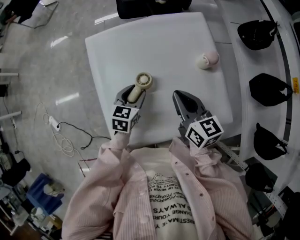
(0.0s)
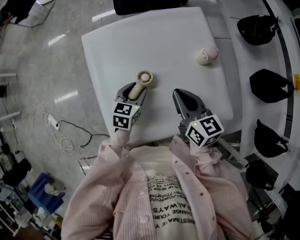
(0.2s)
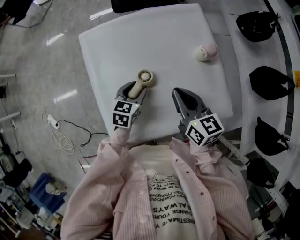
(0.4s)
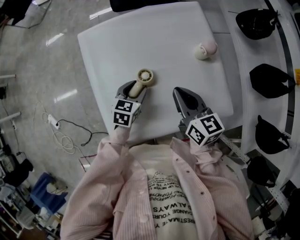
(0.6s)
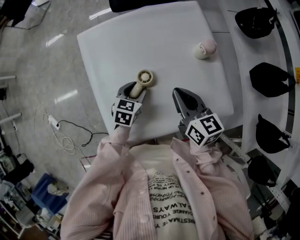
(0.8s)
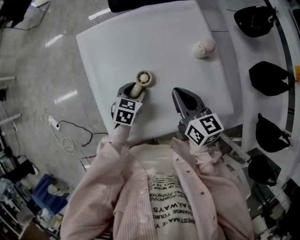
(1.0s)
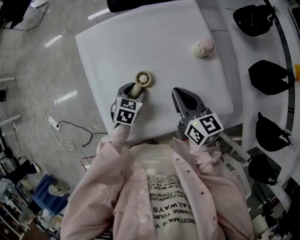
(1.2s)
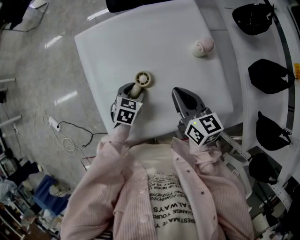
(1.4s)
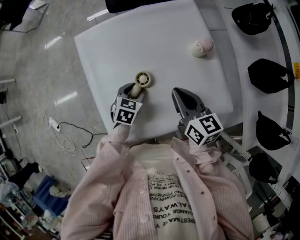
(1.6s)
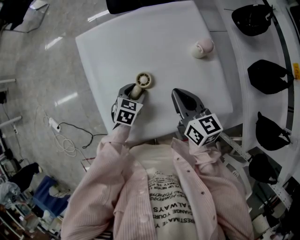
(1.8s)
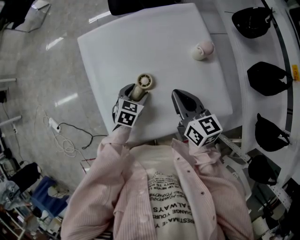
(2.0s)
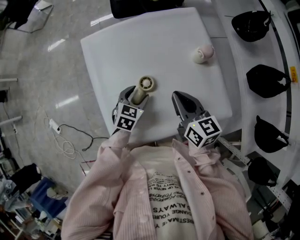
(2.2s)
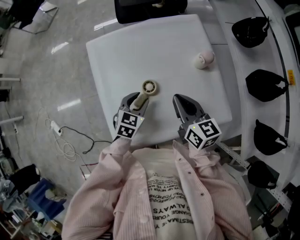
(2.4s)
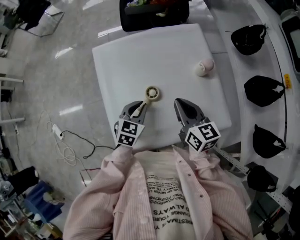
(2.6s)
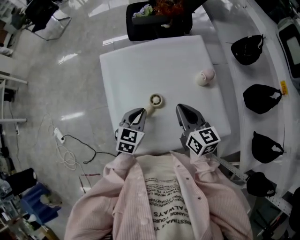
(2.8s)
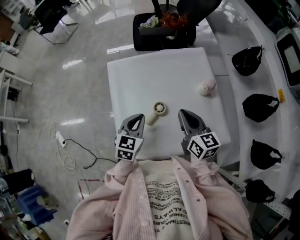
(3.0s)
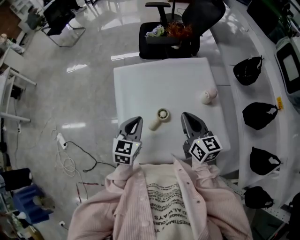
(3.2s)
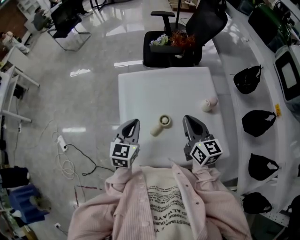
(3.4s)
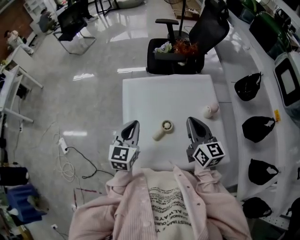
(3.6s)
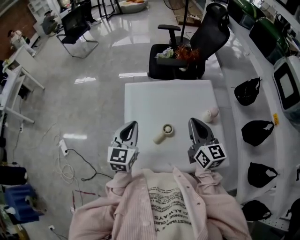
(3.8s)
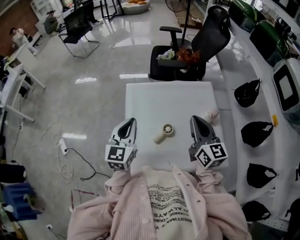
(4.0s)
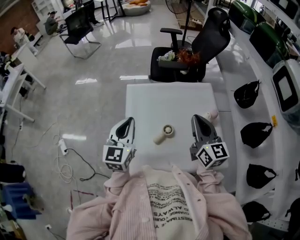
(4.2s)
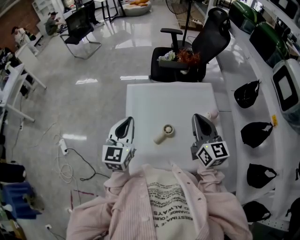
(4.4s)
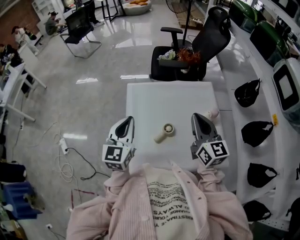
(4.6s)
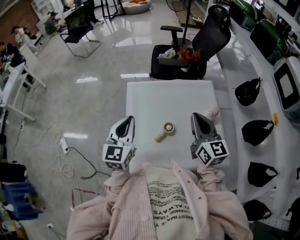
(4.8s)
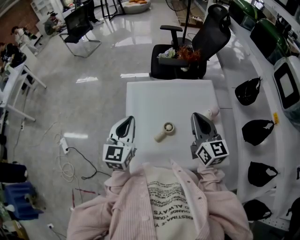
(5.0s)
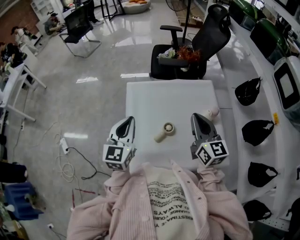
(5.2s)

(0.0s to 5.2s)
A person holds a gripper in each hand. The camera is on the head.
0.0s - 1.8s: The left gripper goes about 5 cm downward.
1.8s - 3.4s: The right gripper is displaced upward by about 10 cm, while the left gripper shifts some 25 cm upward and to the left, points its fingers roughly 30 degrees further upward, and closes.
3.4s - 5.2s: Both grippers travel together upward, some 5 cm.

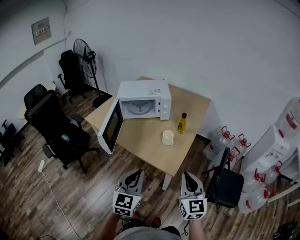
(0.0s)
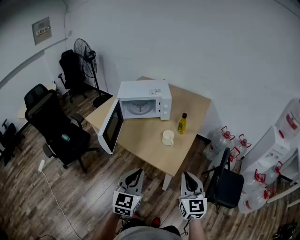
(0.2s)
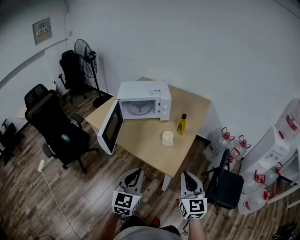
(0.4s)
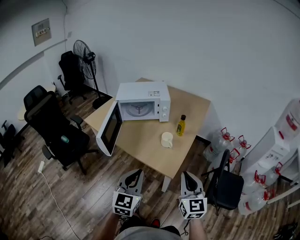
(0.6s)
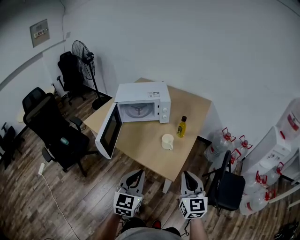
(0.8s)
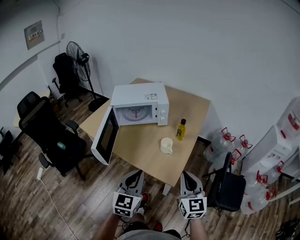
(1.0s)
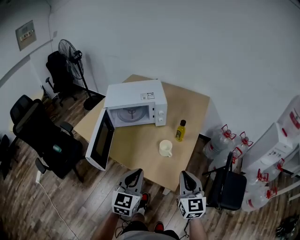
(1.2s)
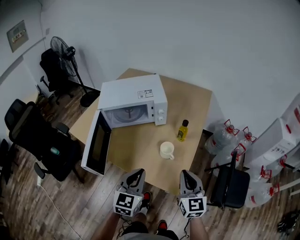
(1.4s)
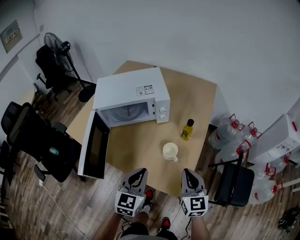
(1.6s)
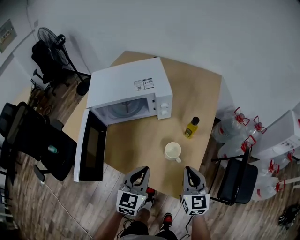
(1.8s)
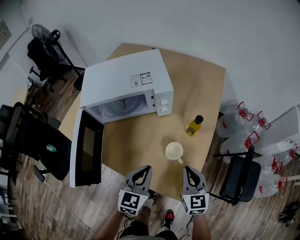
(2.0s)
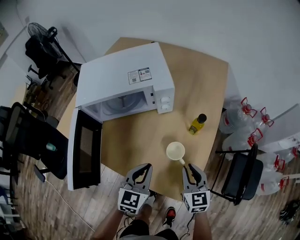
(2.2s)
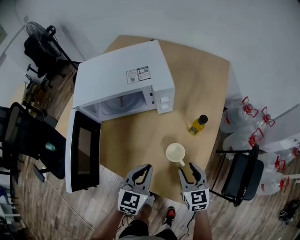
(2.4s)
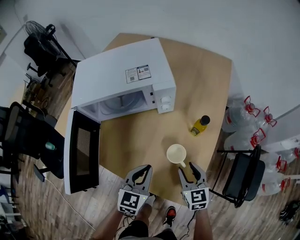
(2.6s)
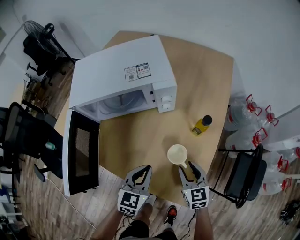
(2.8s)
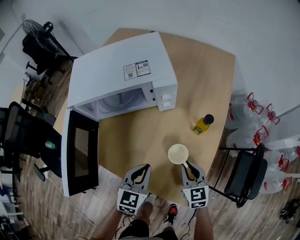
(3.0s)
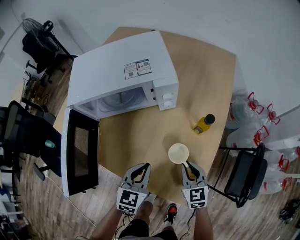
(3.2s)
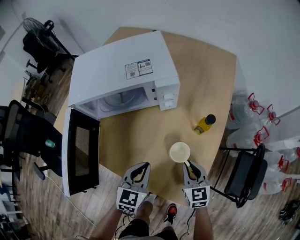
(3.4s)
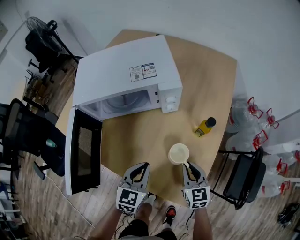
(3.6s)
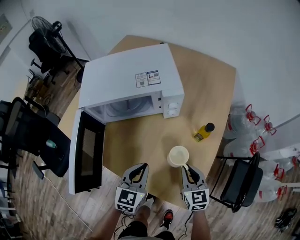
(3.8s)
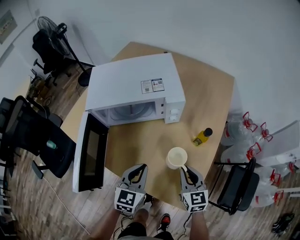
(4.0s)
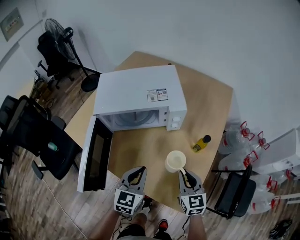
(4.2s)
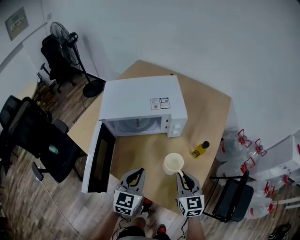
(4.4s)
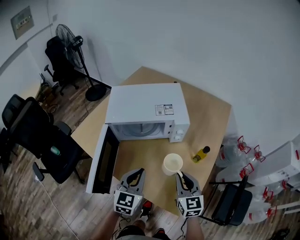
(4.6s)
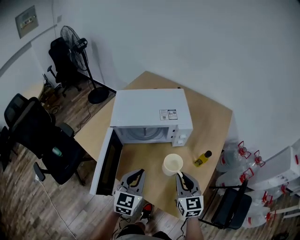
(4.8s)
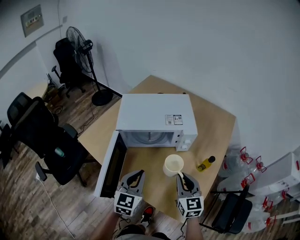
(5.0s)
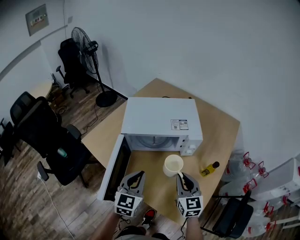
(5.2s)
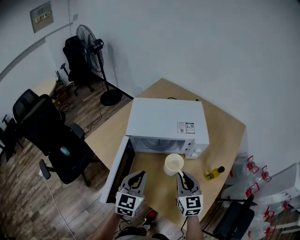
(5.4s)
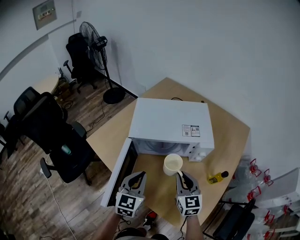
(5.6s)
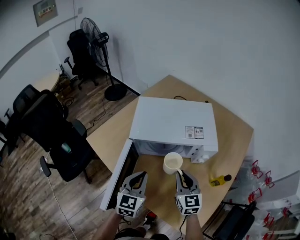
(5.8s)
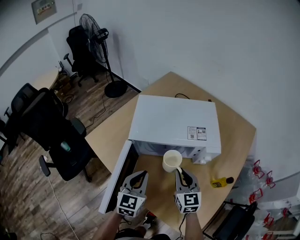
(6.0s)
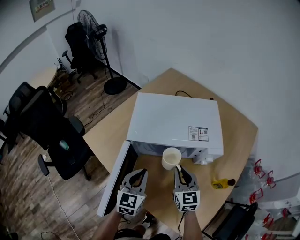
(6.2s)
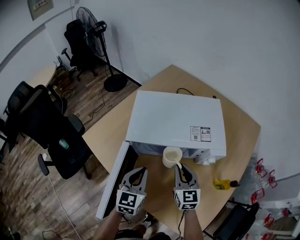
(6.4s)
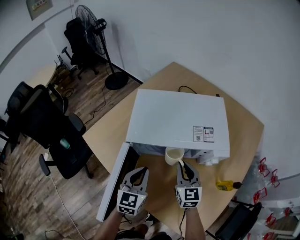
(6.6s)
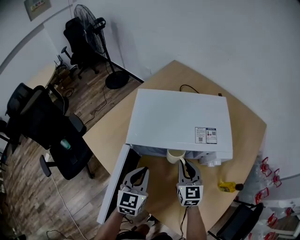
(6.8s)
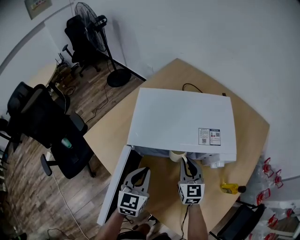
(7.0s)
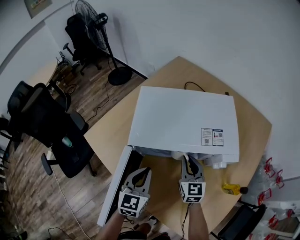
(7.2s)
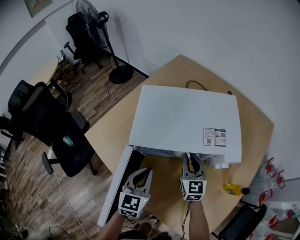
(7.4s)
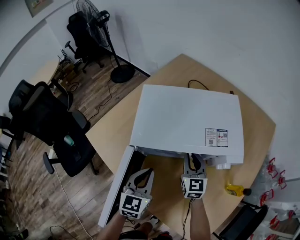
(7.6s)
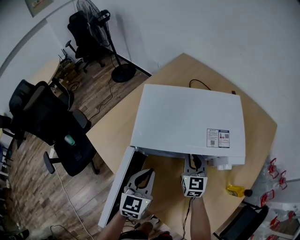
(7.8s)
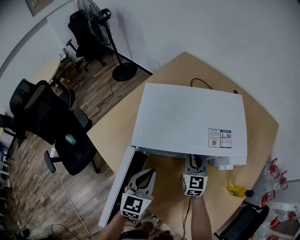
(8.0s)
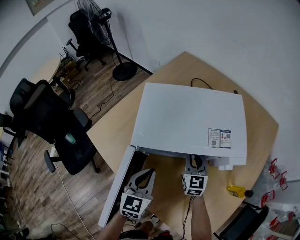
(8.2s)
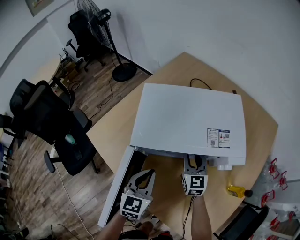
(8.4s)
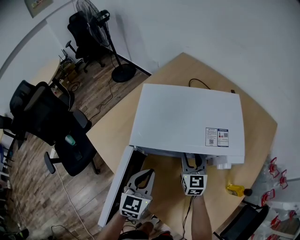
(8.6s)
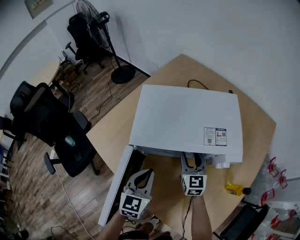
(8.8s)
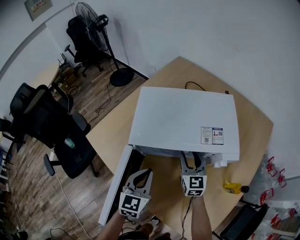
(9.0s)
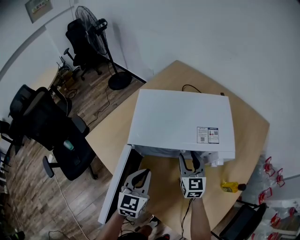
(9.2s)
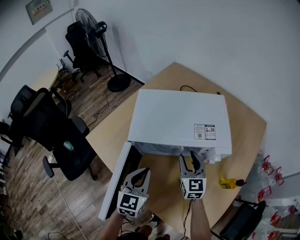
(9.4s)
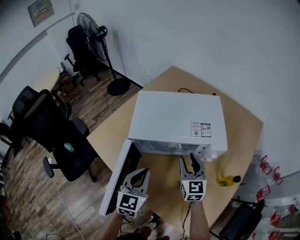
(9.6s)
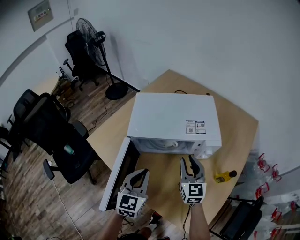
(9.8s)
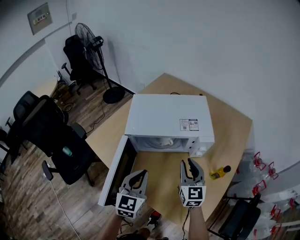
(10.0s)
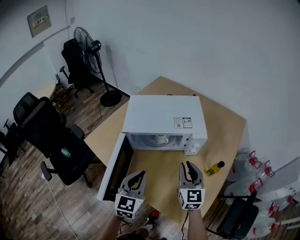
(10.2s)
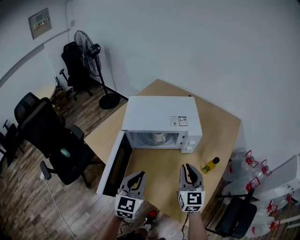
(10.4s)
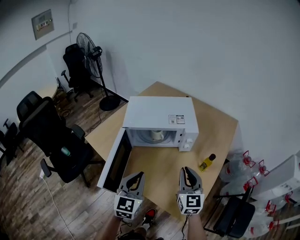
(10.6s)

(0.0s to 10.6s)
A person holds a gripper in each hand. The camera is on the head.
0.0s - 1.6s: The left gripper is displaced forward by about 25 cm. Meanwhile the right gripper heads forward and downward, covering roughly 25 cm.
1.6s - 3.0s: Both grippers move downward and forward, roughly 20 cm. The right gripper opens and closes again.
3.0s - 4.6s: Both grippers travel together upward and to the left, roughly 15 cm.
4.6s - 6.0s: The left gripper shifts about 15 cm to the left and forward, while the right gripper travels forward and to the left by some 20 cm.
6.0s - 7.6s: The left gripper moves forward and downward, approximately 10 cm. Meanwhile the right gripper heads forward and downward, covering some 15 cm.
7.6s - 9.0s: The right gripper opens.
9.0s - 10.6s: The grippers both shift backward and upward by roughly 25 cm. The right gripper closes its fingers.

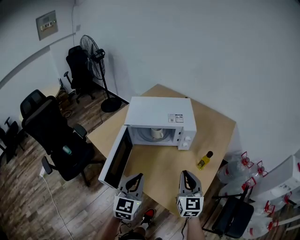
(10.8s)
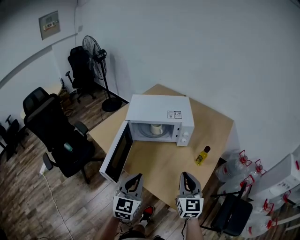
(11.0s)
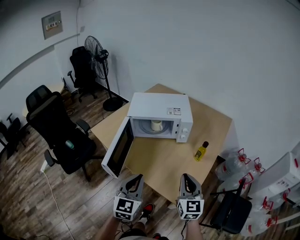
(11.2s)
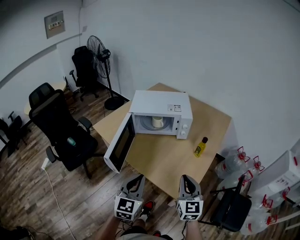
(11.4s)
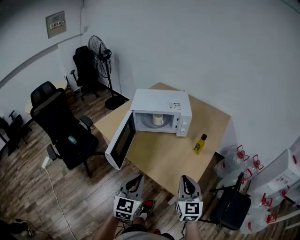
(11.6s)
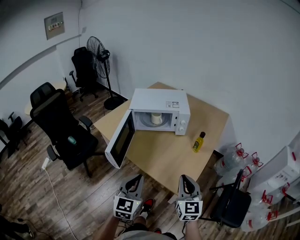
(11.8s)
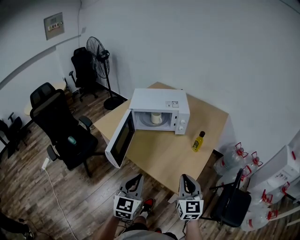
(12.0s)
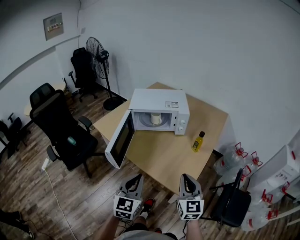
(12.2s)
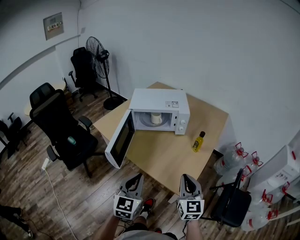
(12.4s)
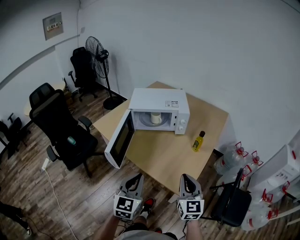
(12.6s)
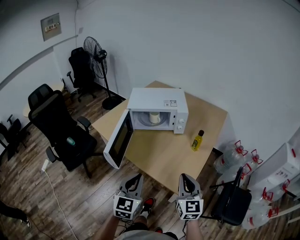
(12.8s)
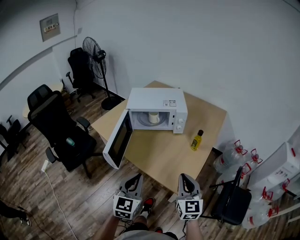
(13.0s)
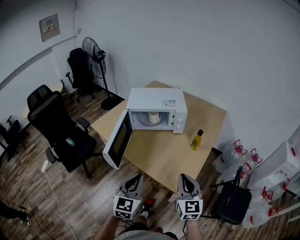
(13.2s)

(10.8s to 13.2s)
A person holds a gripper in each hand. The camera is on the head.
10.8s - 12.0s: The two grippers go some 15 cm backward.
12.0s - 13.2s: The two grippers keep their place.

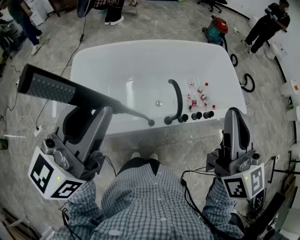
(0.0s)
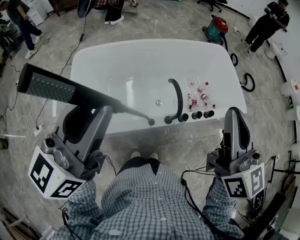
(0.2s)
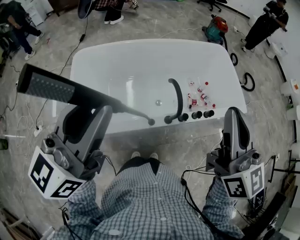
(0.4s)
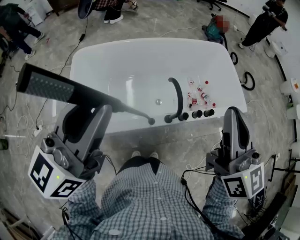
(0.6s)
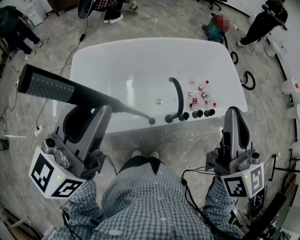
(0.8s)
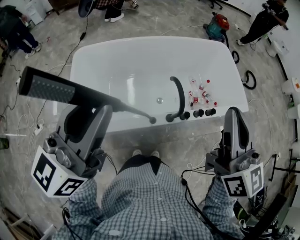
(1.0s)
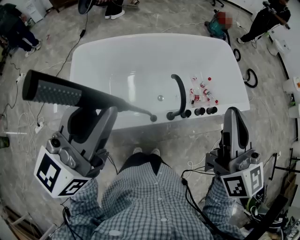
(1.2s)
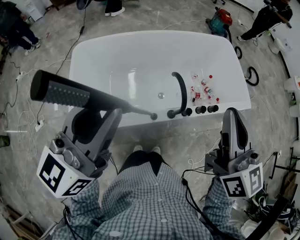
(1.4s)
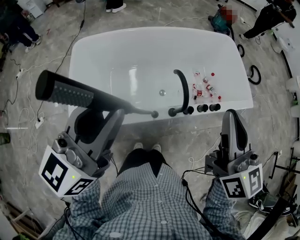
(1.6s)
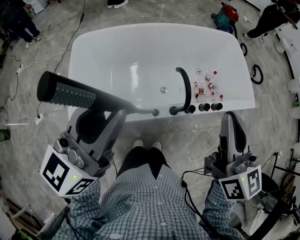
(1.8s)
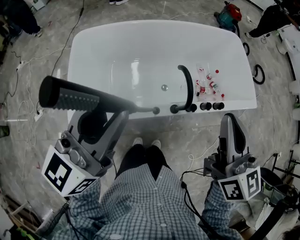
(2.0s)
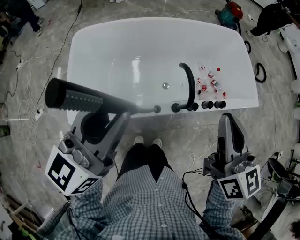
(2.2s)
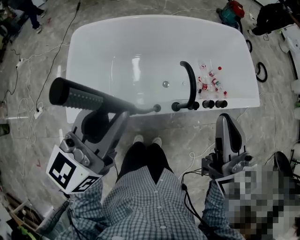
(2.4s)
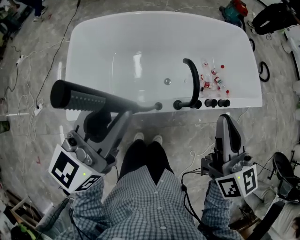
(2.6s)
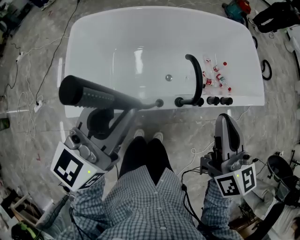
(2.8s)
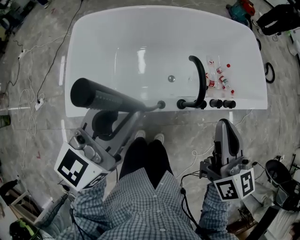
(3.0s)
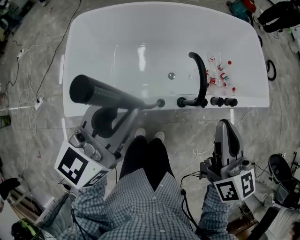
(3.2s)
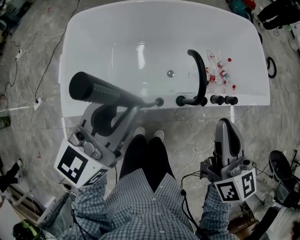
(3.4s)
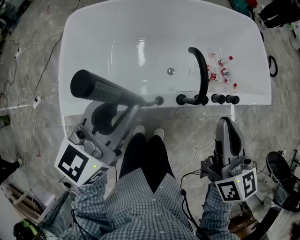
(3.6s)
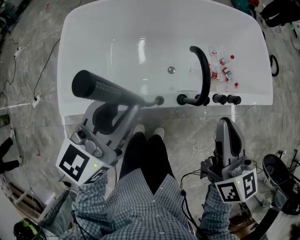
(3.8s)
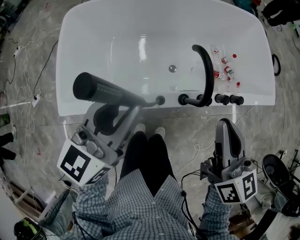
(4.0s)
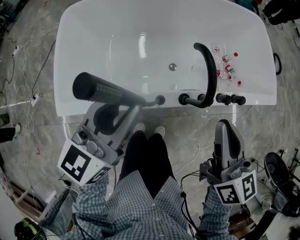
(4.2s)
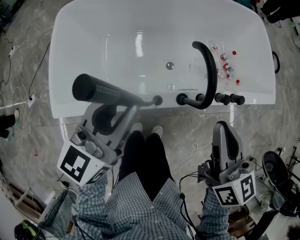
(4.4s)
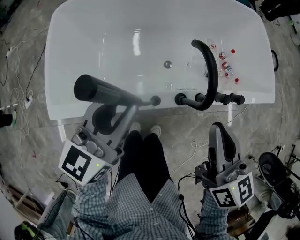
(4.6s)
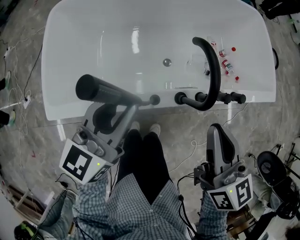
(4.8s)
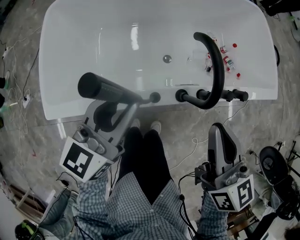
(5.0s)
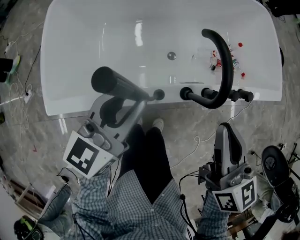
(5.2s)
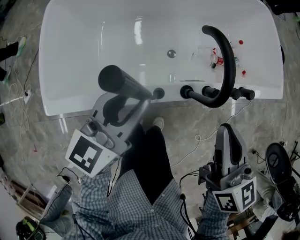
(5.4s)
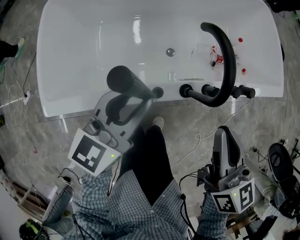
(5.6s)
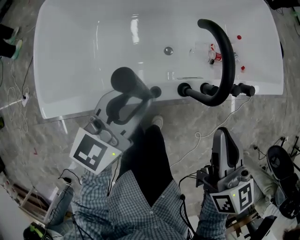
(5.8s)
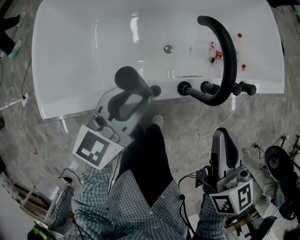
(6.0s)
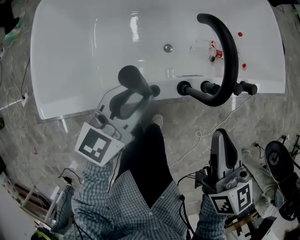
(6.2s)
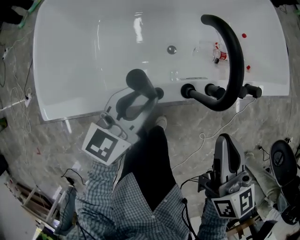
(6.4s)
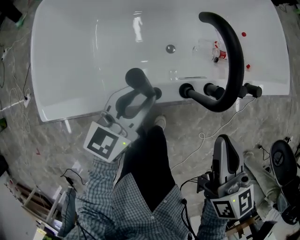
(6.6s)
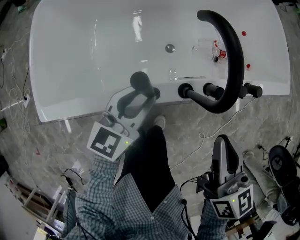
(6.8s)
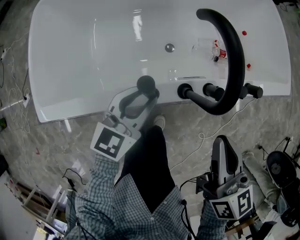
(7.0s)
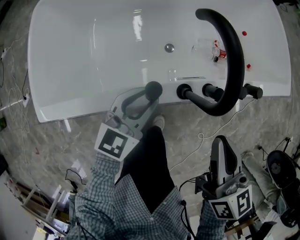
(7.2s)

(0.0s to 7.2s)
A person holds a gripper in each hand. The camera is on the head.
0.0s - 1.4s: The grippers move only a little.
1.4s - 2.8s: The two grippers go approximately 15 cm downward.
2.8s - 4.4s: Both grippers travel together downward, roughly 15 cm.
4.4s - 5.8s: The left gripper travels downward by about 10 cm. The right gripper shifts approximately 5 cm downward.
5.8s - 7.2s: The right gripper heads downward, covering roughly 5 cm. Meanwhile the left gripper goes some 10 cm downward.
